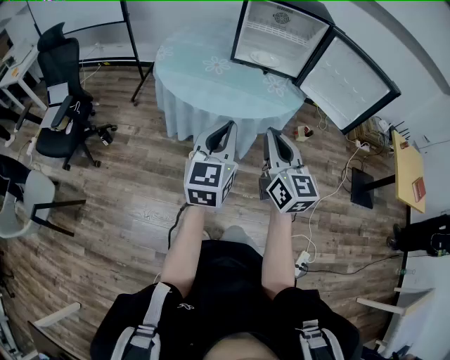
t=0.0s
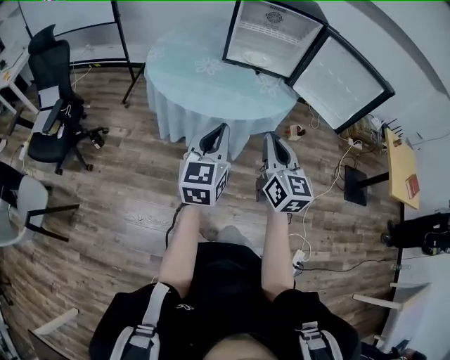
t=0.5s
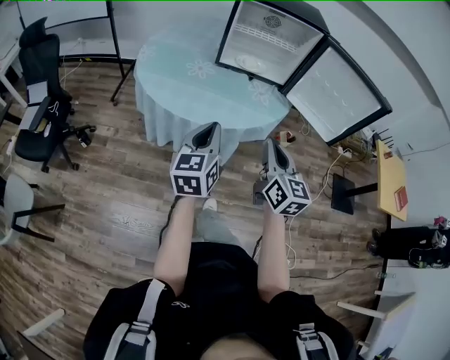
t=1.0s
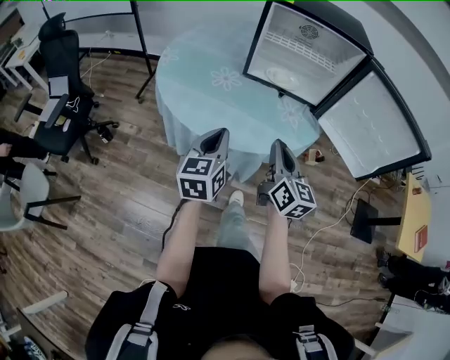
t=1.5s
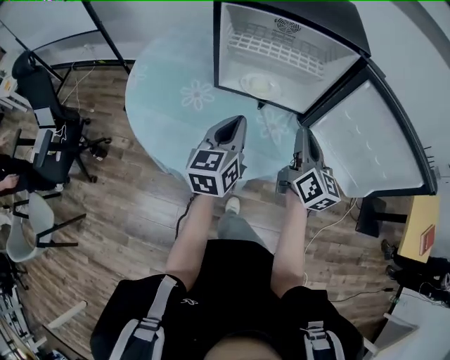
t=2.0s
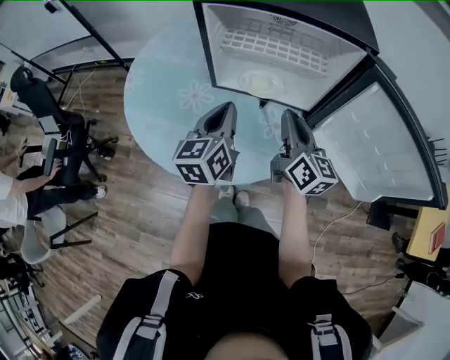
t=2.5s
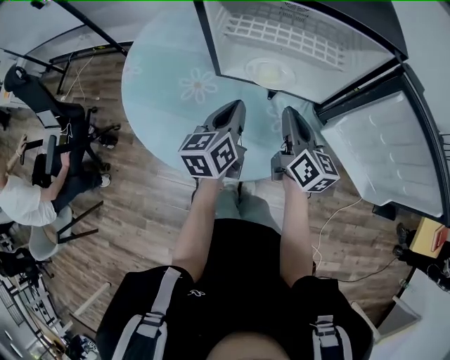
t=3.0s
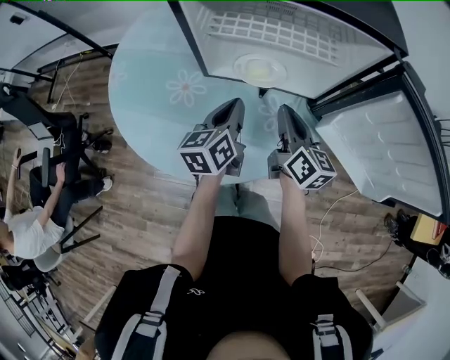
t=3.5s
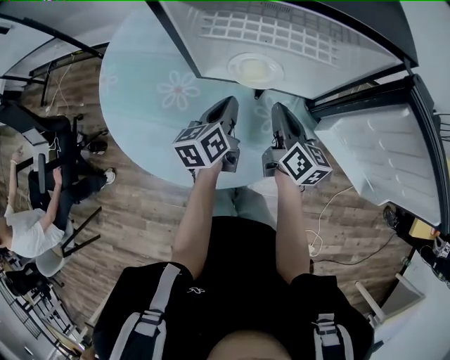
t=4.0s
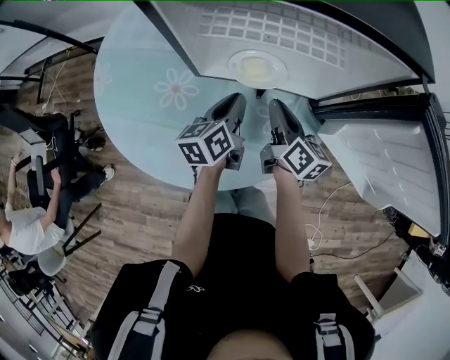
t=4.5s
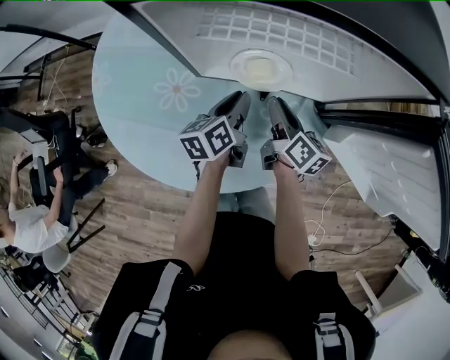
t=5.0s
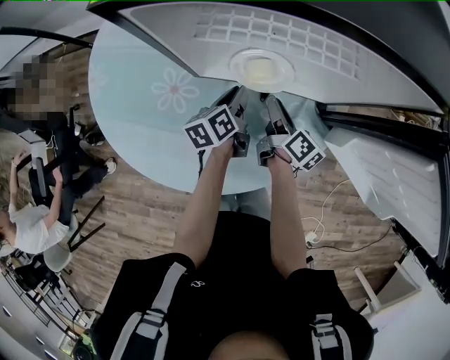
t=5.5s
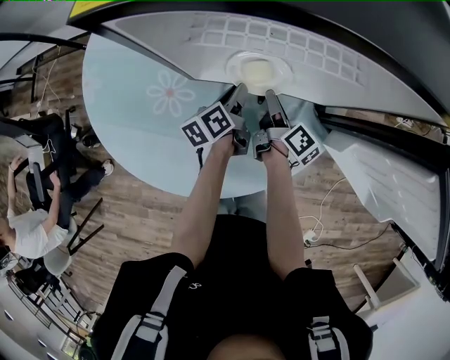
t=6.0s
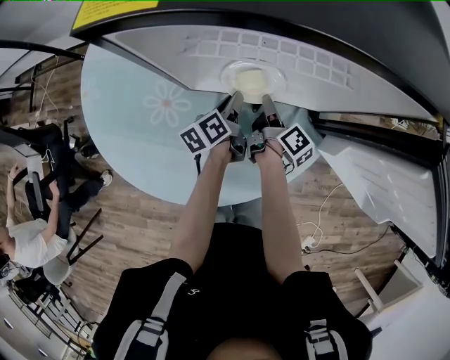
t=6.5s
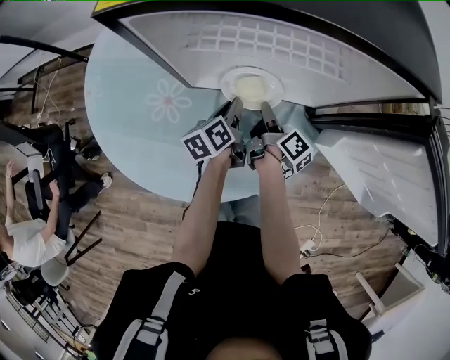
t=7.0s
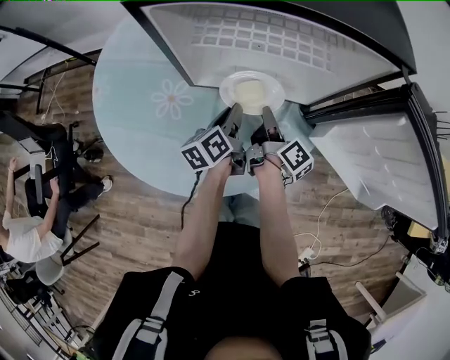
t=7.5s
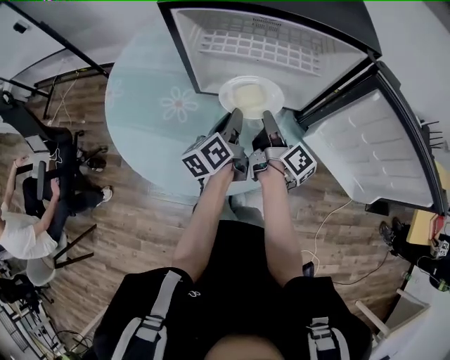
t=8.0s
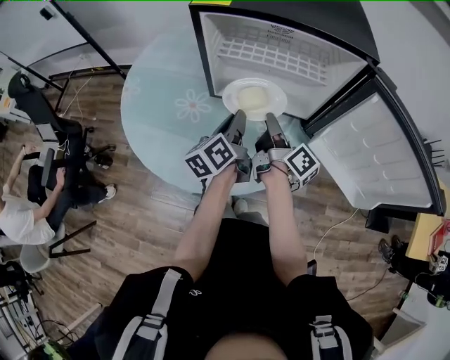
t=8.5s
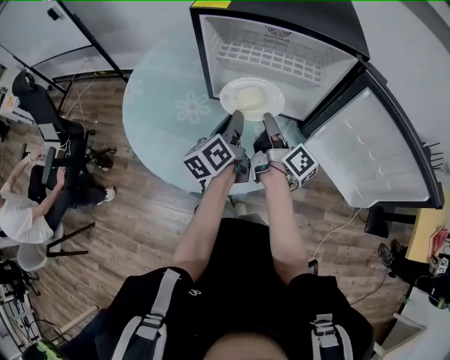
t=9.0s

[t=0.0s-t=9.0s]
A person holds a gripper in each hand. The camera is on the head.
t=0.0s to t=2.0s: Both grippers are carried forward, some 40 cm. The right gripper changes its angle by about 20 degrees.
t=2.0s to t=4.5s: The grippers both shift forward and downward by about 25 cm. The right gripper swivels some 30 degrees. The left gripper rotates roughly 30 degrees.
t=4.5s to t=7.0s: The two grippers go about 5 cm downward. The right gripper turns by approximately 40 degrees, and opens, then closes once more.
t=7.0s to t=9.0s: The grippers both shift upward and backward by approximately 20 cm. The left gripper swivels approximately 20 degrees; the right gripper changes its angle by roughly 30 degrees.

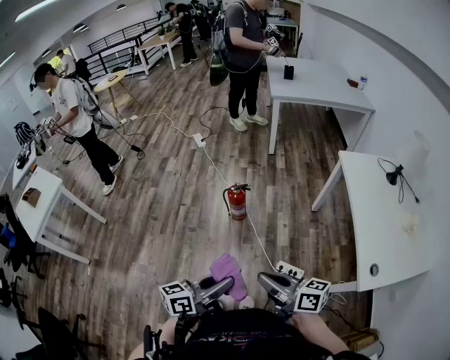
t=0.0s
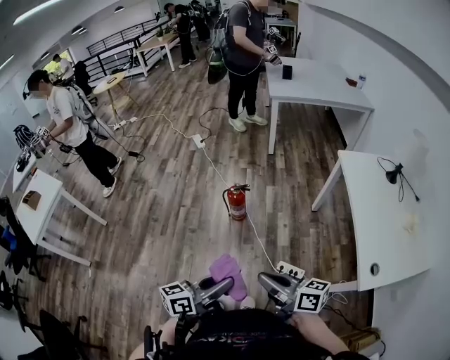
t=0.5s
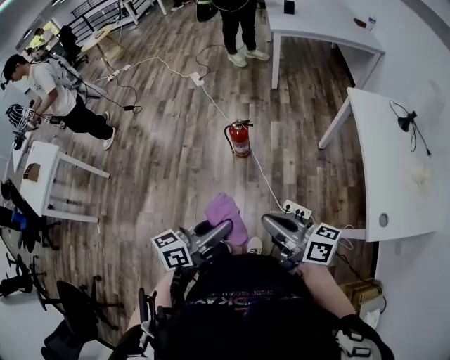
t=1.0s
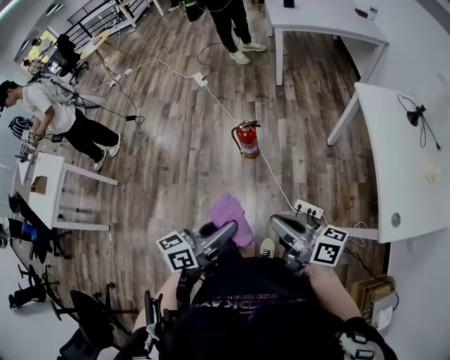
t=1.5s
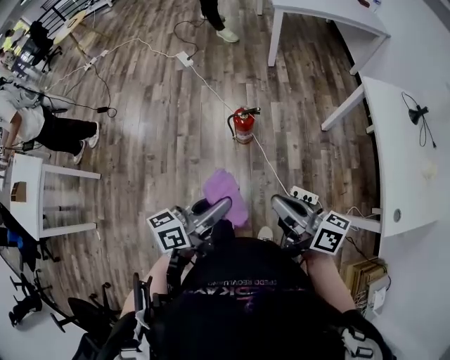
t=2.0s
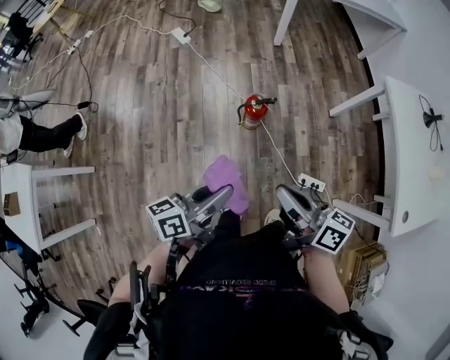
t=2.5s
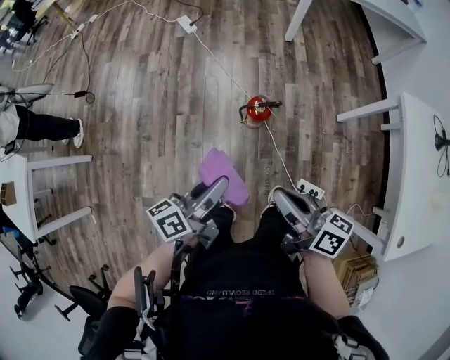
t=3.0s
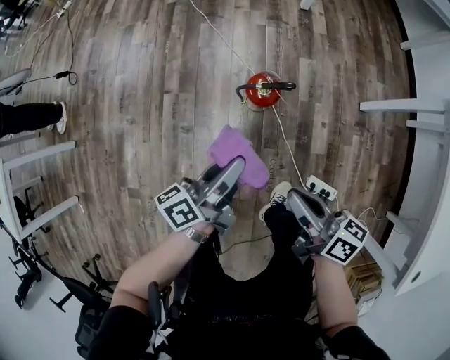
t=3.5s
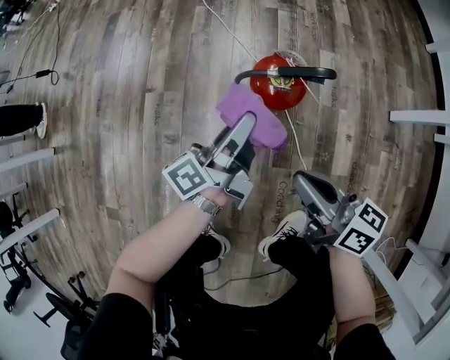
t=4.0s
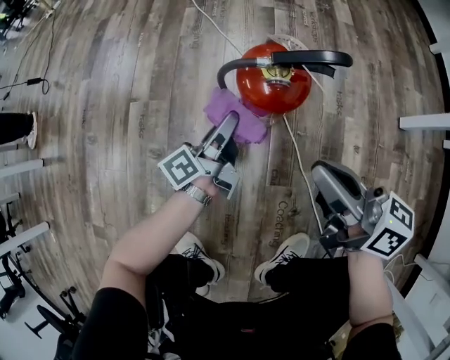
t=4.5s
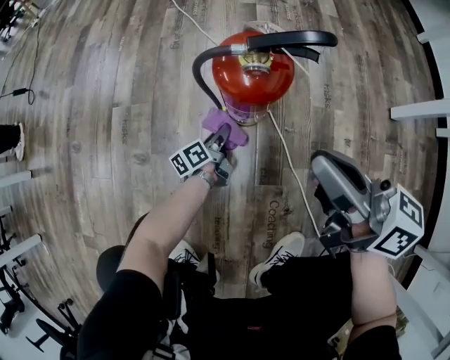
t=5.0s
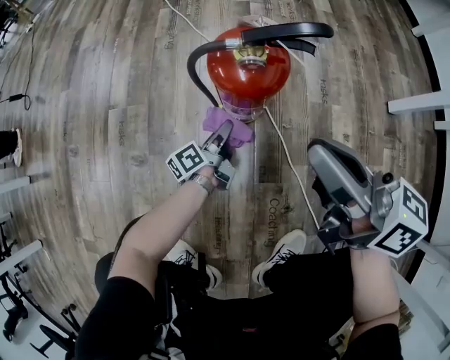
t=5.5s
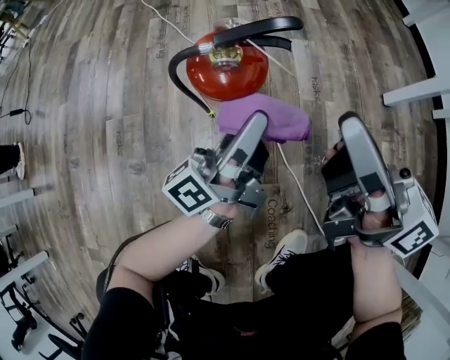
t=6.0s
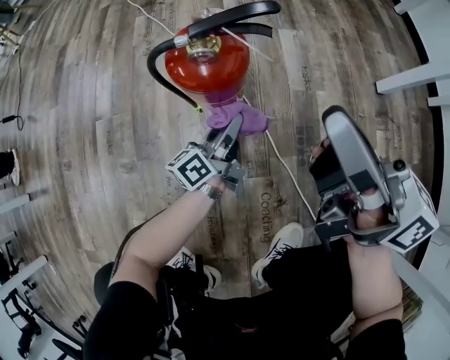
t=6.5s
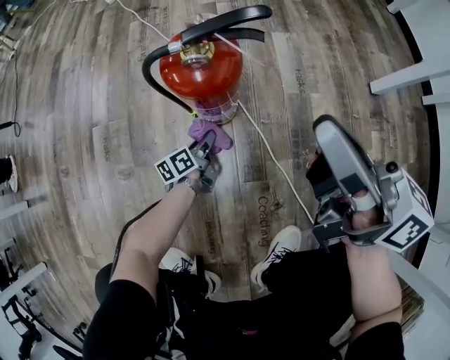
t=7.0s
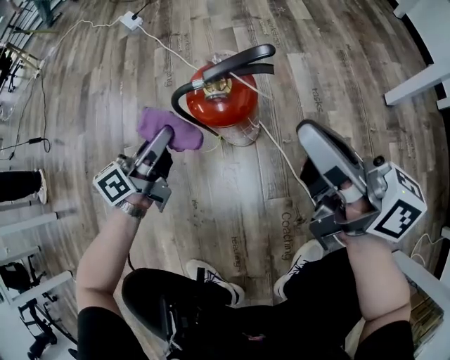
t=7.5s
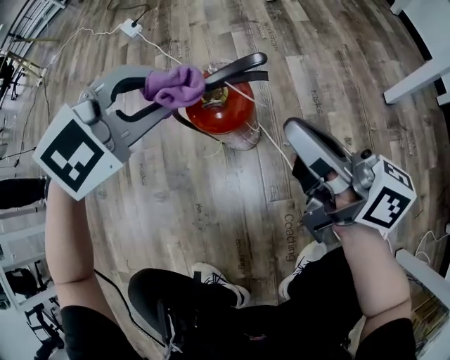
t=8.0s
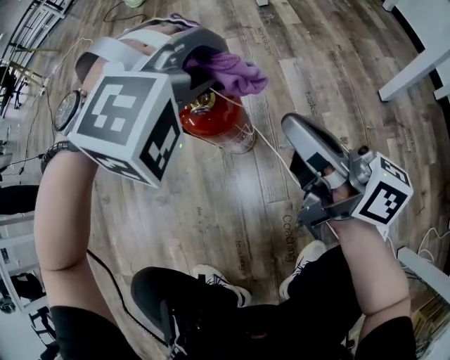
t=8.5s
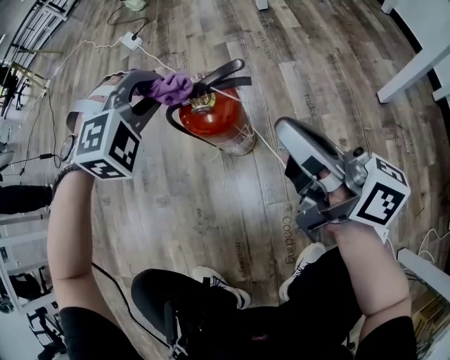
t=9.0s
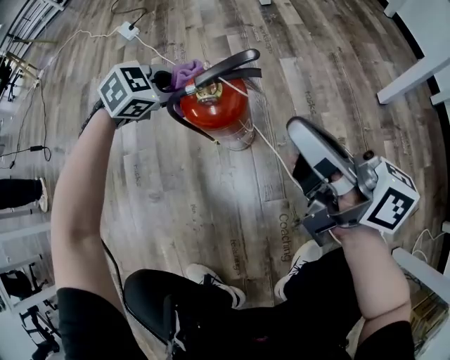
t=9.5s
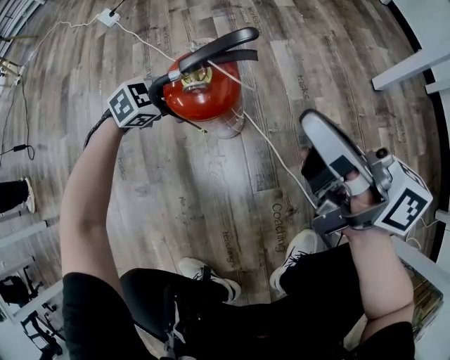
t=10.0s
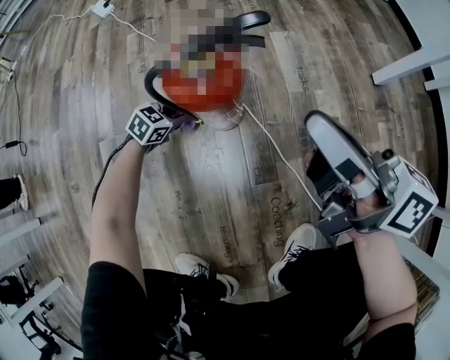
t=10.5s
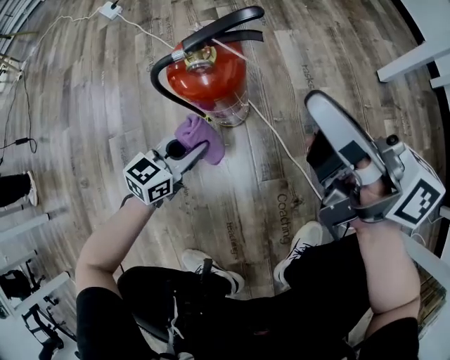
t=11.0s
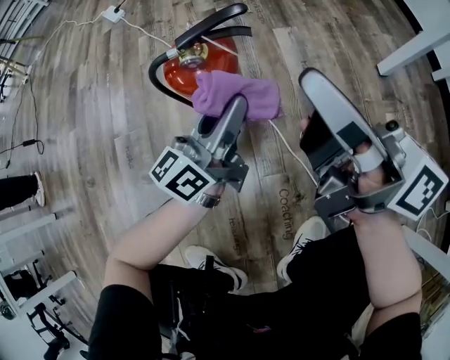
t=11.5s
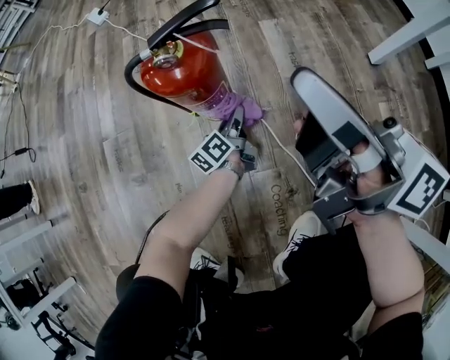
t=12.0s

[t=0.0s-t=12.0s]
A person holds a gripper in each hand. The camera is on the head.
t=0.0s to t=2.0s: The two grippers go some 15 cm forward and to the left.
t=2.0s to t=4.0s: Both grippers travel together downward and forward, some 60 cm. The left gripper changes its angle by some 30 degrees.
t=4.0s to t=6.0s: The right gripper is displaced to the right and forward by approximately 10 cm, and rotates approximately 30 degrees. Meanwhile the left gripper goes some 10 cm to the right, and moves roughly 35 cm downward and comes back.
t=6.0s to t=8.0s: The left gripper moves forward and to the left, some 10 cm, reaches about 30 cm downward, then returns, and tips its fingers downward by roughly 70 degrees.
t=8.0s to t=10.0s: The left gripper goes roughly 30 cm downward, and turns by about 30 degrees.
t=10.0s to t=12.0s: The left gripper moves up and down over some 30 cm, changing direction 2 times, and angles its fingers upward, by about 40 degrees.

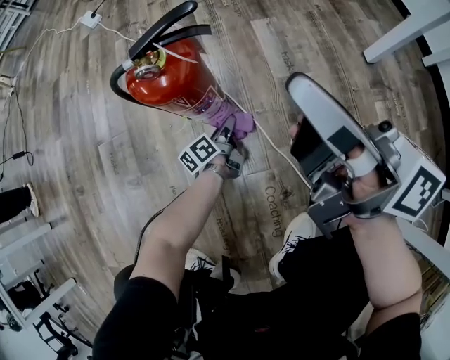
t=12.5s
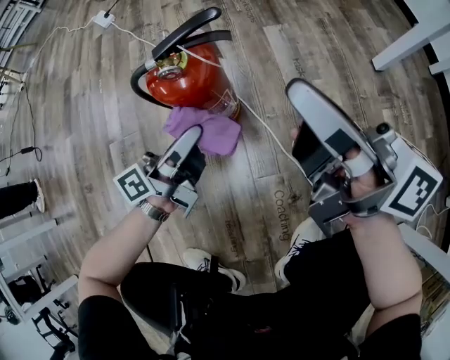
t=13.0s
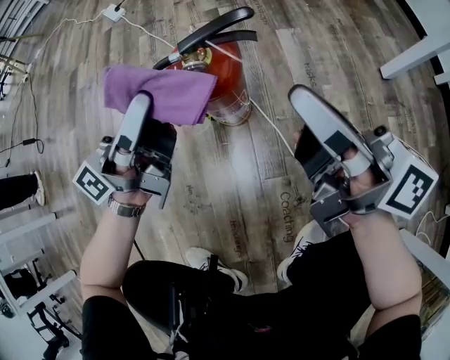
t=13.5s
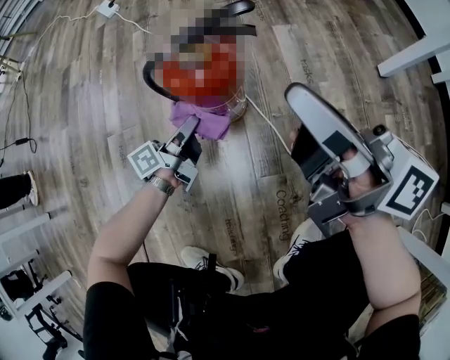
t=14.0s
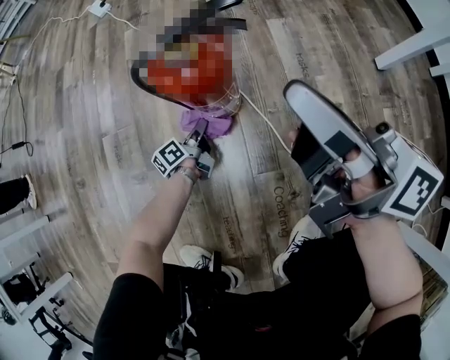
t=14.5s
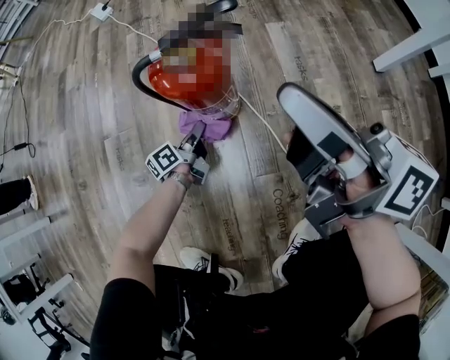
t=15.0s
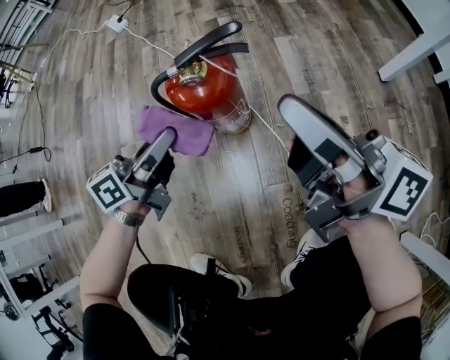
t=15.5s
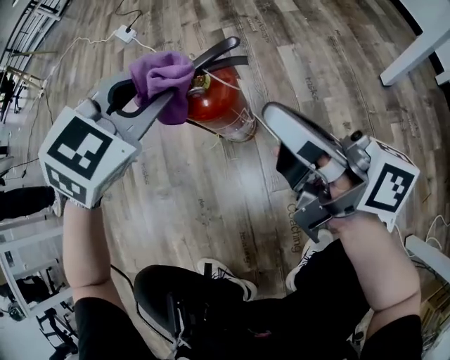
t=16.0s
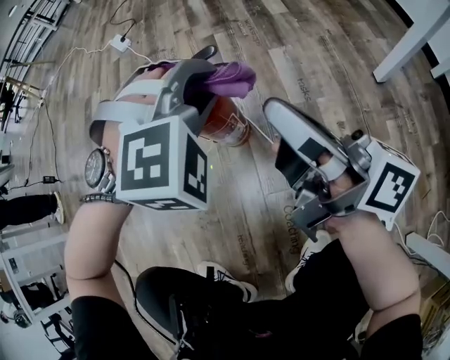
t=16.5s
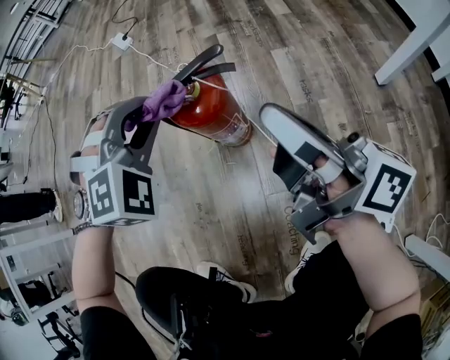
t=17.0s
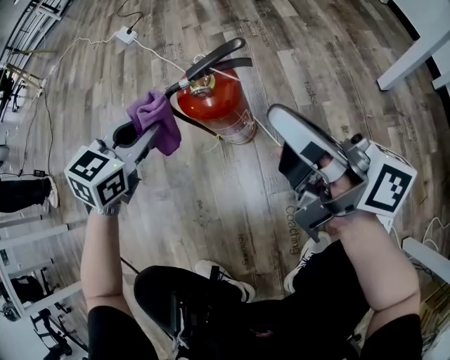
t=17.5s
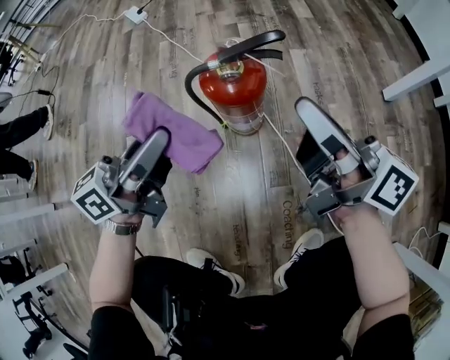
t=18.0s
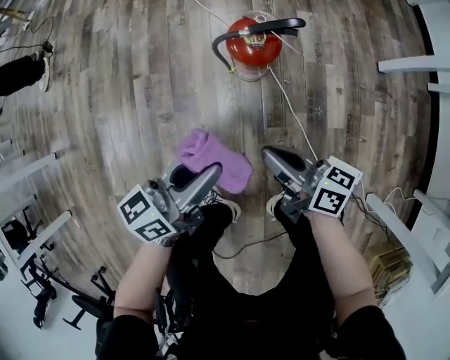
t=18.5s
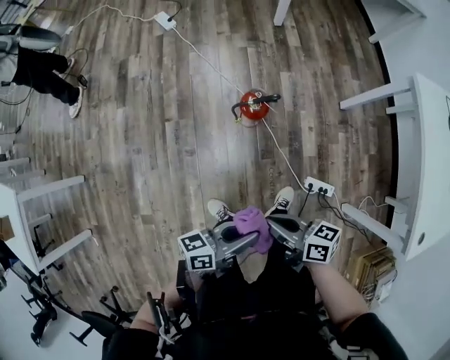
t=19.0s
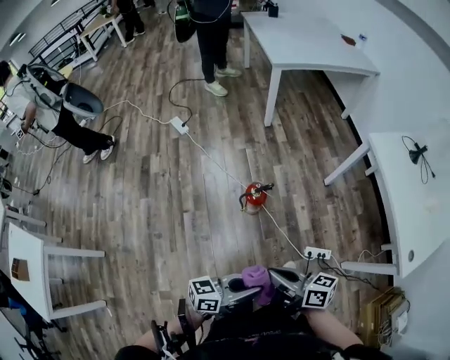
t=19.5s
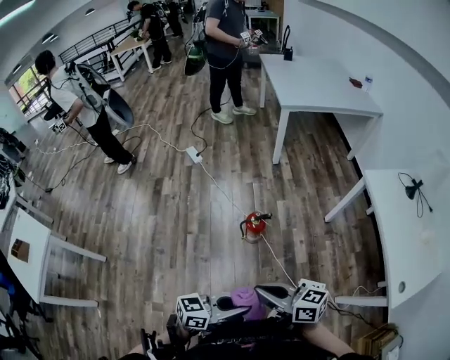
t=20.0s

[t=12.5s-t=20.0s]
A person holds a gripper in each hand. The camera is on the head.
t=12.5s to t=14.5s: The left gripper shifts approximately 15 cm to the left, and reaches approximately 40 cm upward, then returns.
t=14.5s to t=16.5s: The left gripper goes roughly 40 cm upward, and twists some 150 degrees clockwise, seen from behind.
t=16.5s to t=18.0s: The left gripper is displaced to the left by some 20 cm, and twists about 110 degrees counterclockwise, seen from behind.
t=18.0s to t=20.0s: The grippers both shift upward by some 50 cm. The left gripper changes its angle by approximately 30 degrees. The right gripper rotates roughly 30 degrees.
